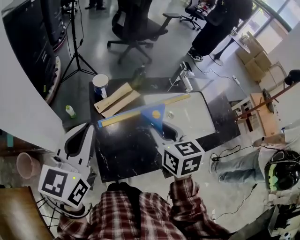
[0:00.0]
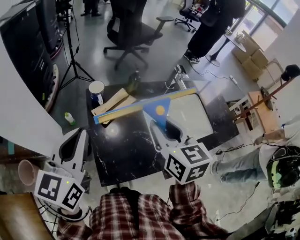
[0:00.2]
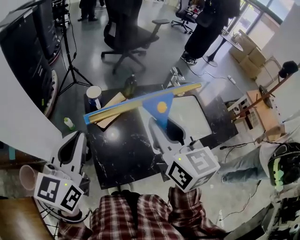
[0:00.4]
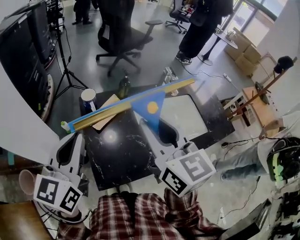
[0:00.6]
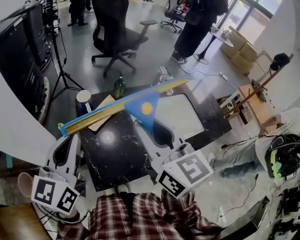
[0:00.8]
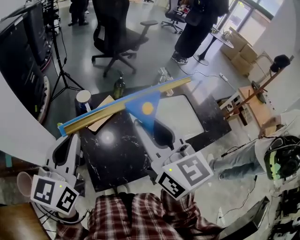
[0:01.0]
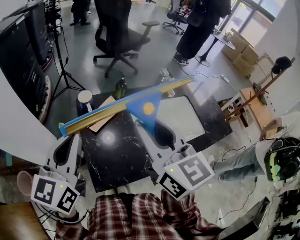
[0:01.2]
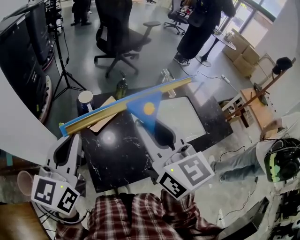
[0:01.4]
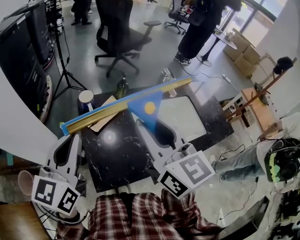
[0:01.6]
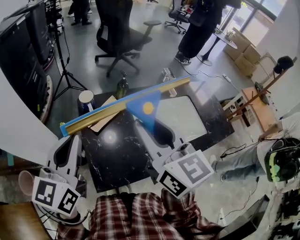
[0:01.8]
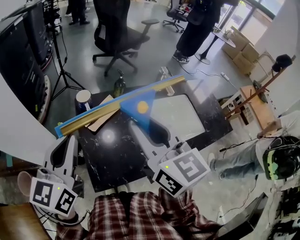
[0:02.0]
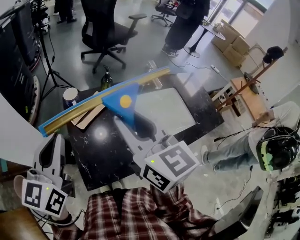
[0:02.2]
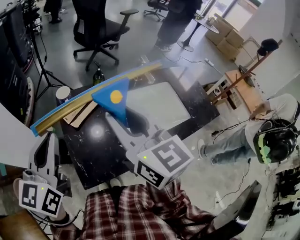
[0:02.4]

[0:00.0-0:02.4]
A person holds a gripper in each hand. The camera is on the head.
0:00.0 to 0:01.2: The right gripper is displaced upward by roughly 15 cm, and swivels some 30 degrees.
0:01.2 to 0:02.4: The two grippers keep their place.

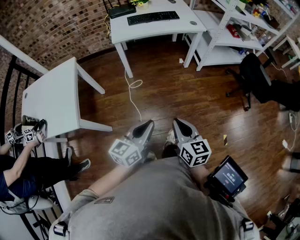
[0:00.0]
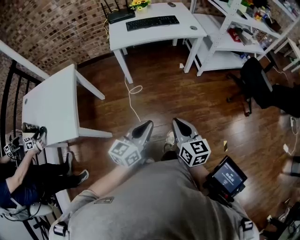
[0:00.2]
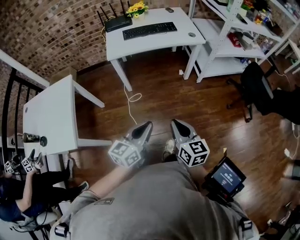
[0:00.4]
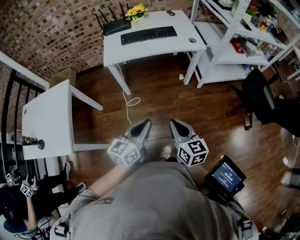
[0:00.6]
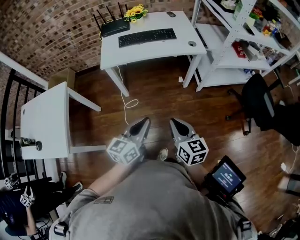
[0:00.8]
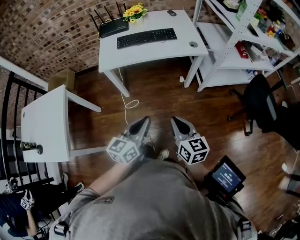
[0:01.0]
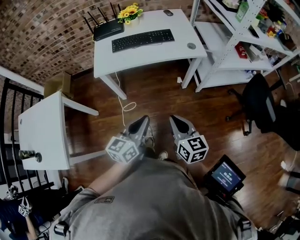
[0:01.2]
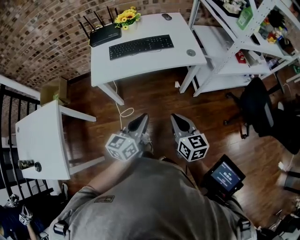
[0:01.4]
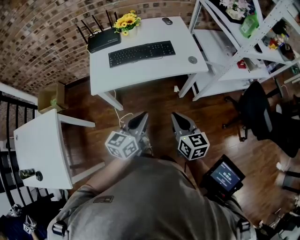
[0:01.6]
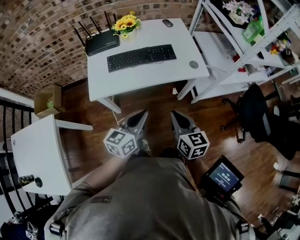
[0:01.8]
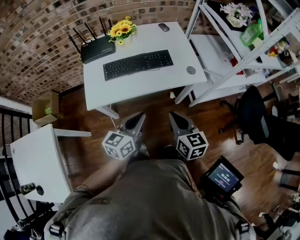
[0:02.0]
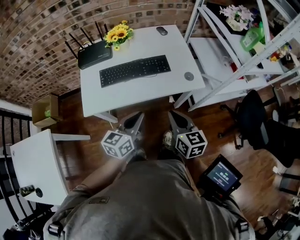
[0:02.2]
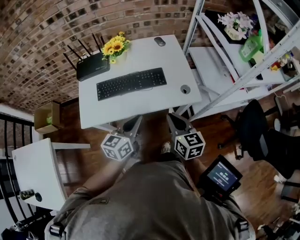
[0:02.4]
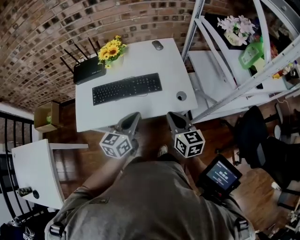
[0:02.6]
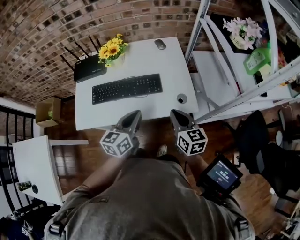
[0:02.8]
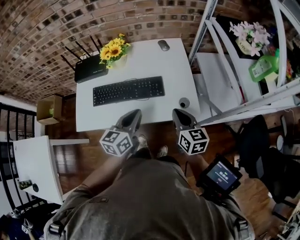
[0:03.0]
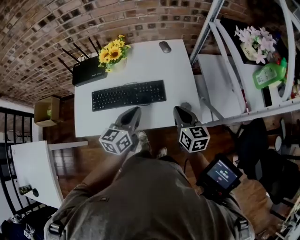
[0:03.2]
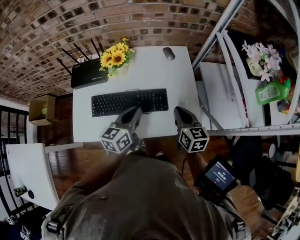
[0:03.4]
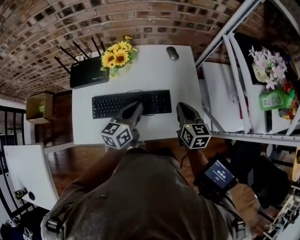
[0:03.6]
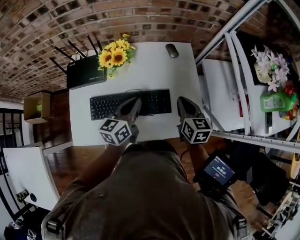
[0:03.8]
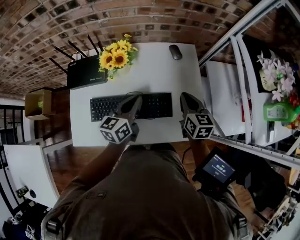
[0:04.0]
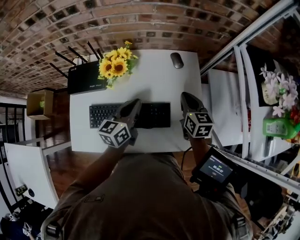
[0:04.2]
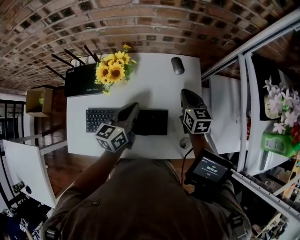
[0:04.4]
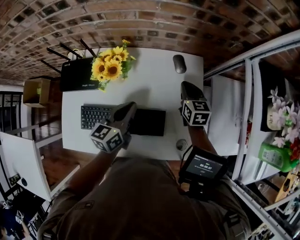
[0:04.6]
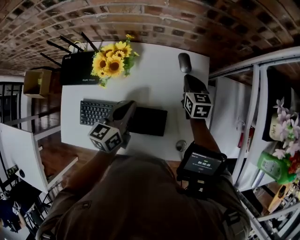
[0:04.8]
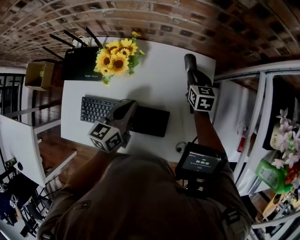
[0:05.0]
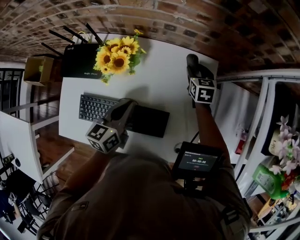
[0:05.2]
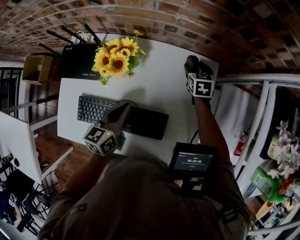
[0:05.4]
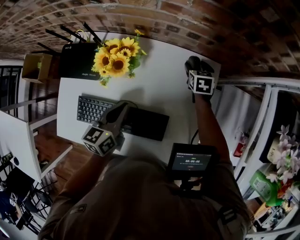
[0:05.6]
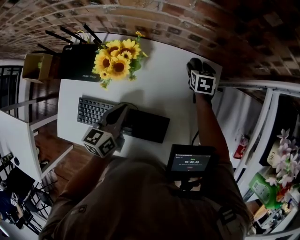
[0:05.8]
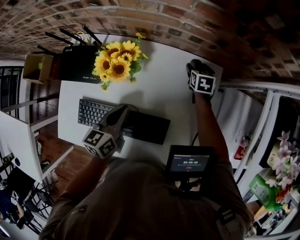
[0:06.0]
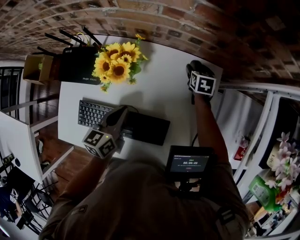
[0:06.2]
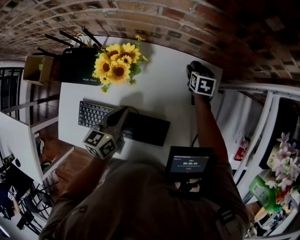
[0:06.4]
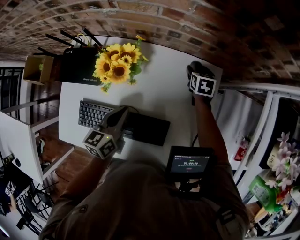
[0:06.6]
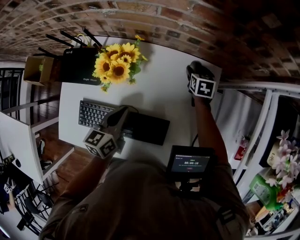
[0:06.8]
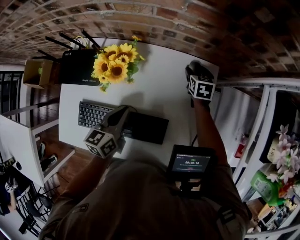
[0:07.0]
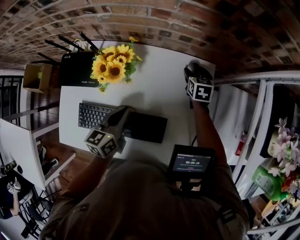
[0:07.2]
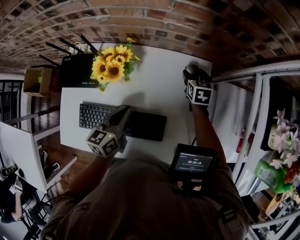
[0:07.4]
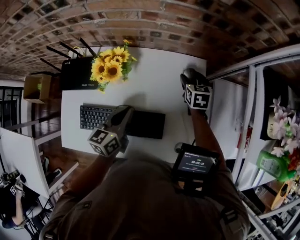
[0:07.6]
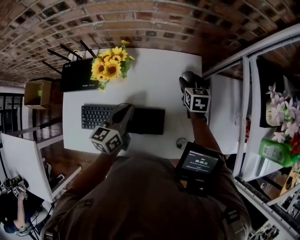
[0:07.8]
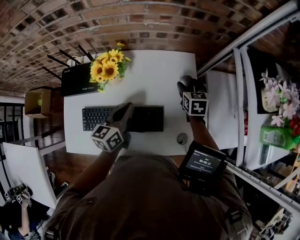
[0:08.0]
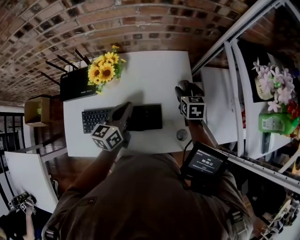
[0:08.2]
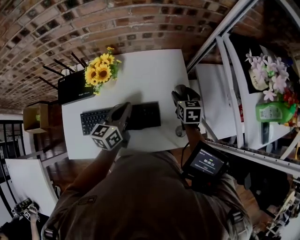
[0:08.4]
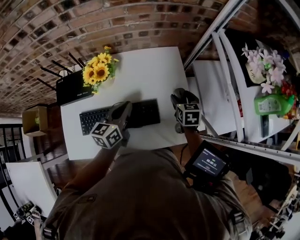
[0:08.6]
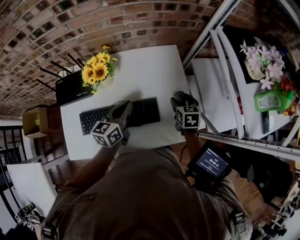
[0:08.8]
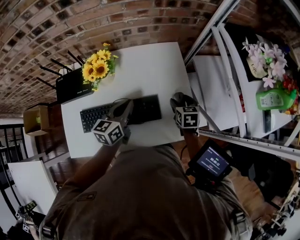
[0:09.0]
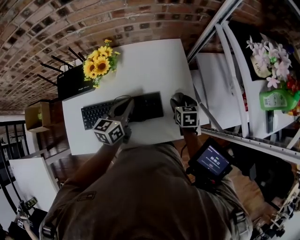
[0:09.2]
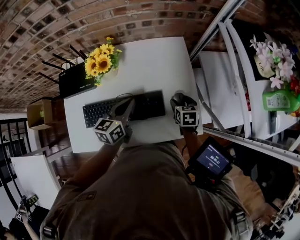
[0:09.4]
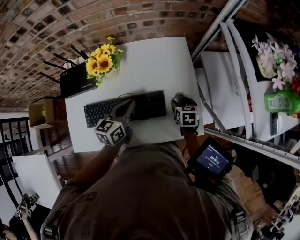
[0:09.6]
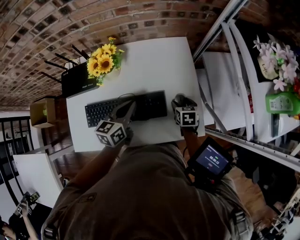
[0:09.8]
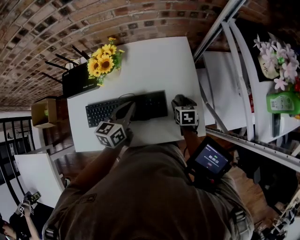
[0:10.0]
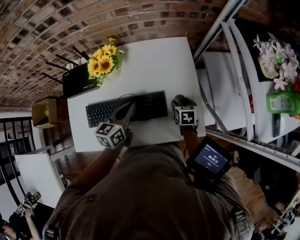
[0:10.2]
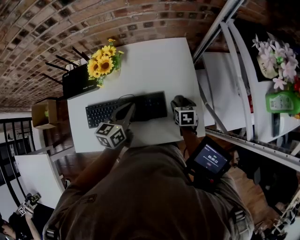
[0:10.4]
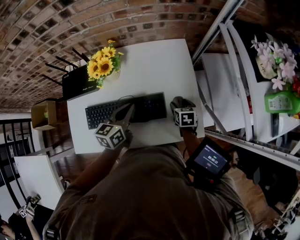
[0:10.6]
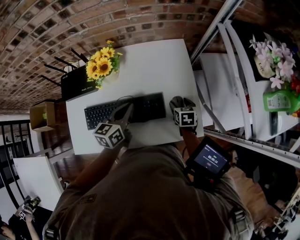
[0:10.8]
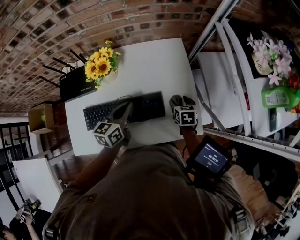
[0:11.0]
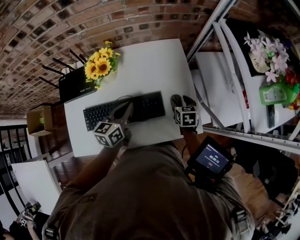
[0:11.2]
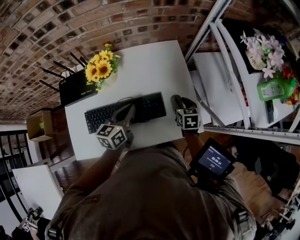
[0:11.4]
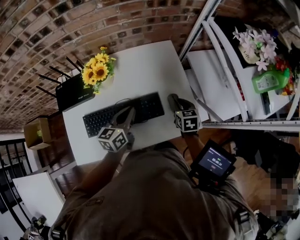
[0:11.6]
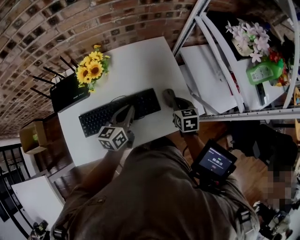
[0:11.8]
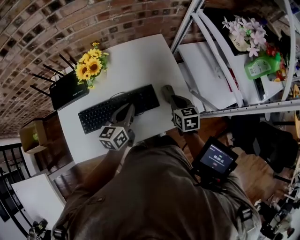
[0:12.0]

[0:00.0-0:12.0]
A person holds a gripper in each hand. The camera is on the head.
0:00.0 to 0:01.6: The pair of grippers is taken forward, about 40 cm.
0:01.6 to 0:03.0: Both grippers move forward, about 30 cm.
0:03.0 to 0:04.4: The two grippers go approximately 30 cm forward.
0:04.4 to 0:06.0: The right gripper travels forward and downward by approximately 25 cm, changes its angle by approximately 20 degrees, and opens. Meanwhile the left gripper is displaced downward by about 5 cm.
0:06.0 to 0:07.6: The right gripper moves upward and backward, some 10 cm.
0:07.6 to 0:09.0: The left gripper ends up some 5 cm from where it was; the right gripper goes about 20 cm backward.
0:09.0 to 0:10.4: The right gripper heads downward, covering approximately 10 cm.
0:10.4 to 0:12.0: The right gripper heads upward and backward, covering about 15 cm, and closes up.

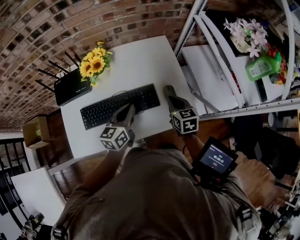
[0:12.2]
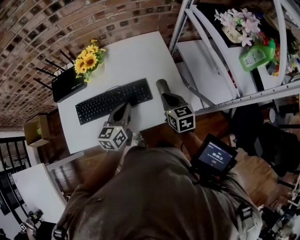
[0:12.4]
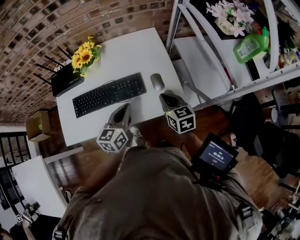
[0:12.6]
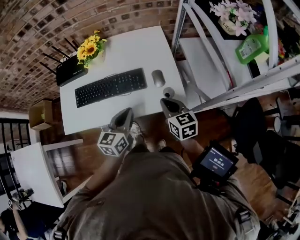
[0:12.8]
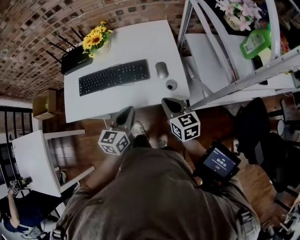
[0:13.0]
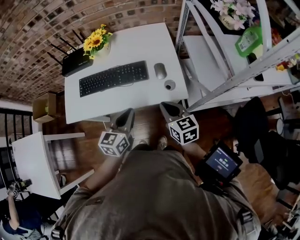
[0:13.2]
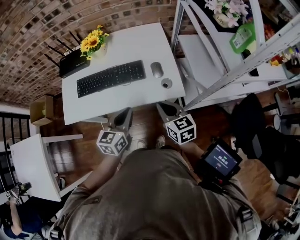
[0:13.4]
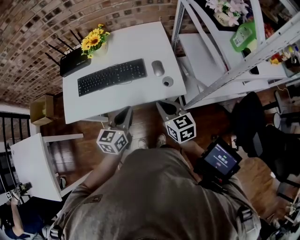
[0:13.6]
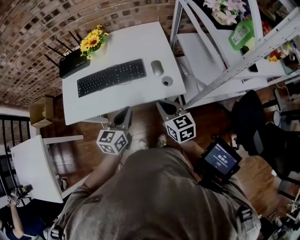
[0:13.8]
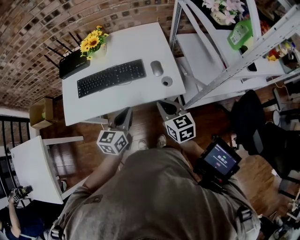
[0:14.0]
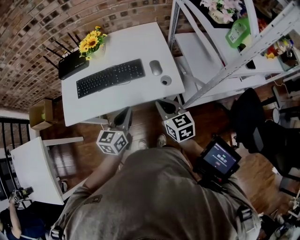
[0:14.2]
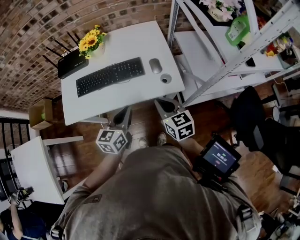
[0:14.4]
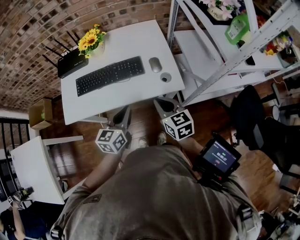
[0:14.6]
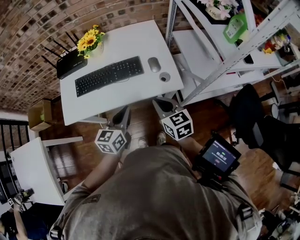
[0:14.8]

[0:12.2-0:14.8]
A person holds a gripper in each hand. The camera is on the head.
0:12.2 to 0:13.4: The two grippers go roughly 20 cm backward.
0:13.4 to 0:14.8: The grippers make only small movements.

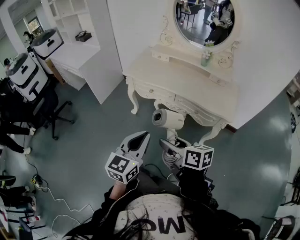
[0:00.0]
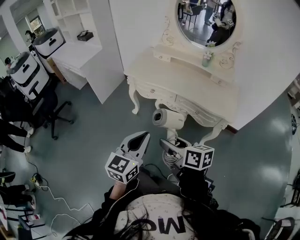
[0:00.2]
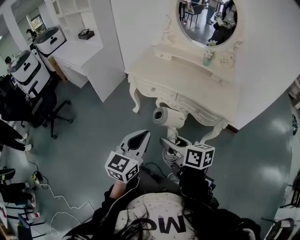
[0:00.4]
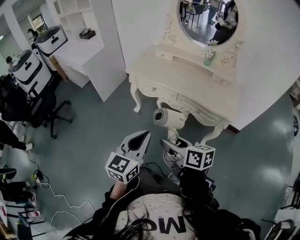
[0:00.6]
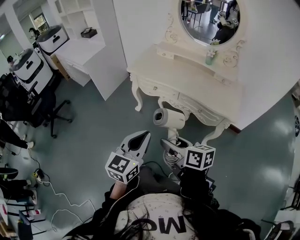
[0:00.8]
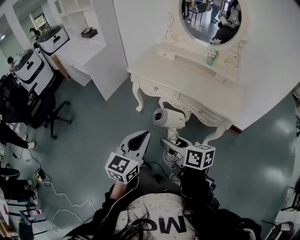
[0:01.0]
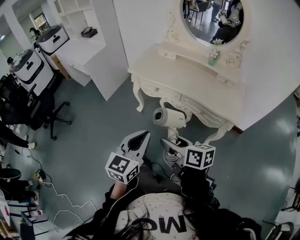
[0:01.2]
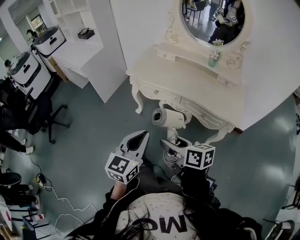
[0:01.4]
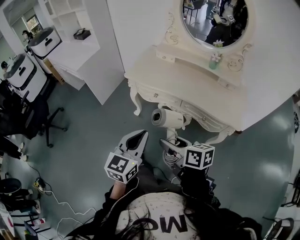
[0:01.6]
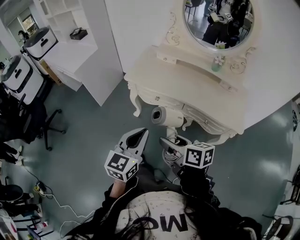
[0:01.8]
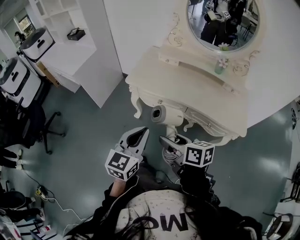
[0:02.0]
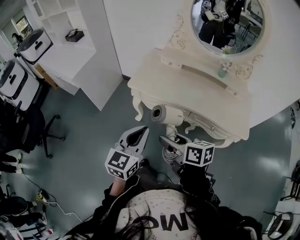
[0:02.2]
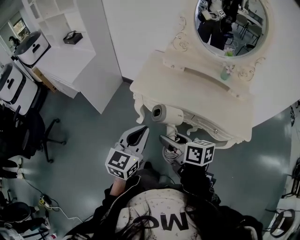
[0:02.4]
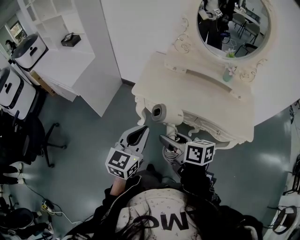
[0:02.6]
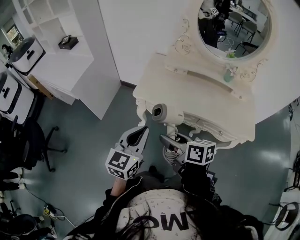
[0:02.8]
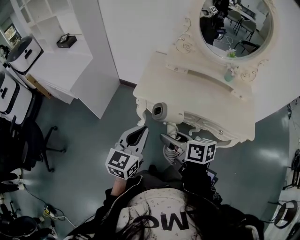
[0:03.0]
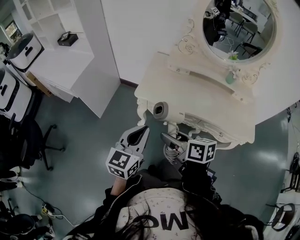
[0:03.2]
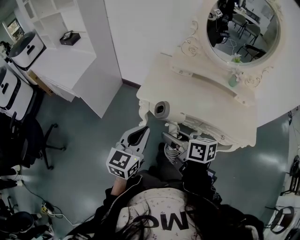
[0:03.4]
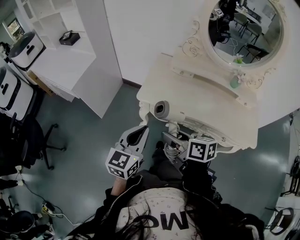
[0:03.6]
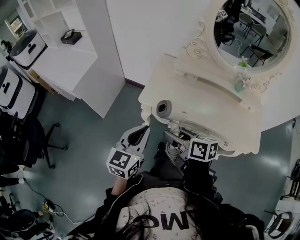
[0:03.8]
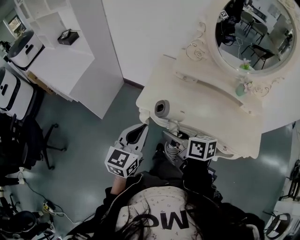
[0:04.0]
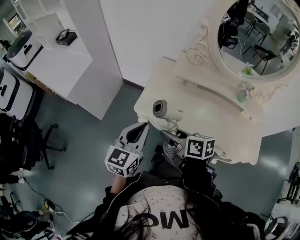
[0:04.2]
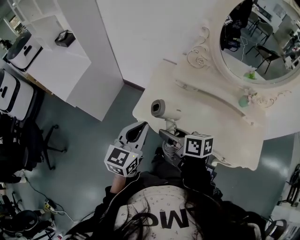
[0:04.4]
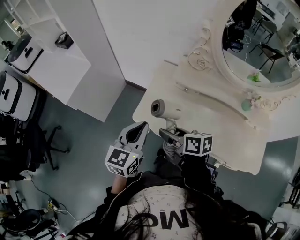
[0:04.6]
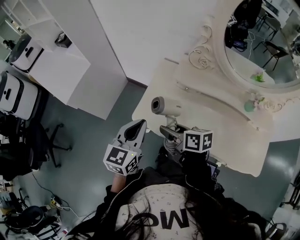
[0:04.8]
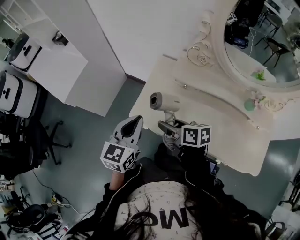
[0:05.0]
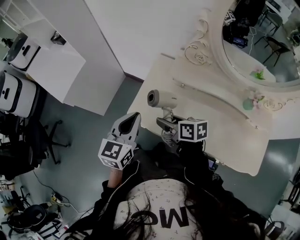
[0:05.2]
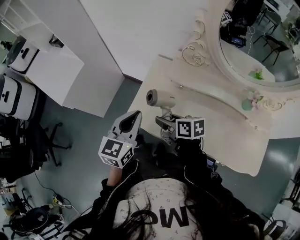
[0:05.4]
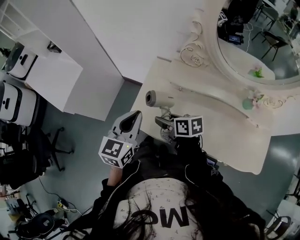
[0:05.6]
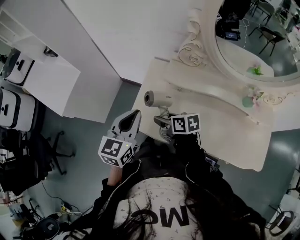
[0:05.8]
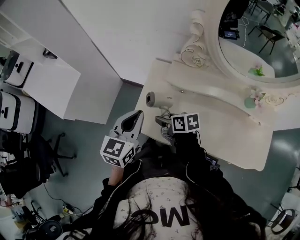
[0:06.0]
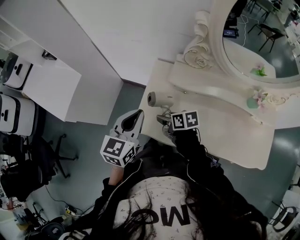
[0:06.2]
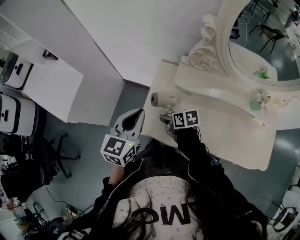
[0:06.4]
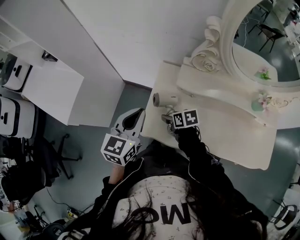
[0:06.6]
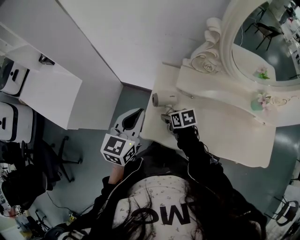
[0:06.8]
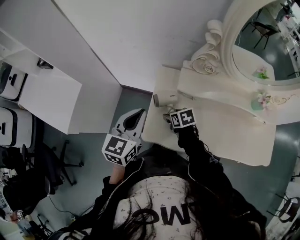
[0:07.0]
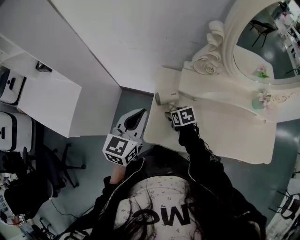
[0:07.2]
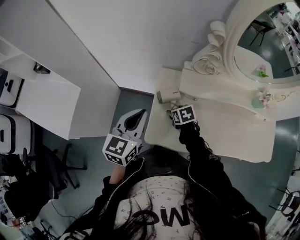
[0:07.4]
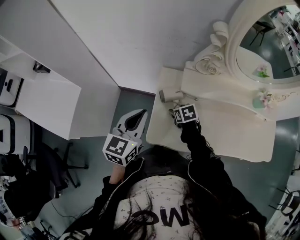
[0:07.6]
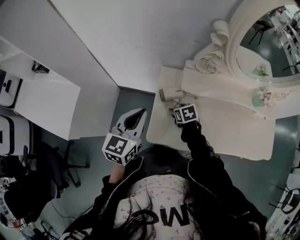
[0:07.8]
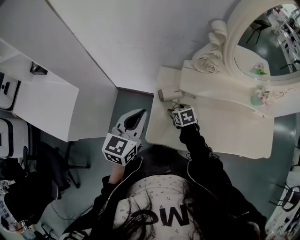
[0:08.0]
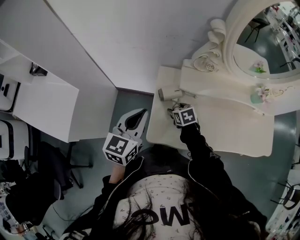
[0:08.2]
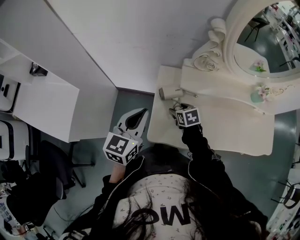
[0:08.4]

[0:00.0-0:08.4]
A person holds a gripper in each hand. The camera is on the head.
0:00.0 to 0:01.4: The grippers move only a little.
0:01.4 to 0:02.8: Both grippers travel together forward and to the left, about 30 cm.
0:02.8 to 0:04.2: Both grippers move forward, roughly 15 cm.
0:04.2 to 0:05.6: The left gripper moves forward and to the right, roughly 15 cm, while the right gripper heads forward, downward and to the right, covering roughly 20 cm.
0:05.6 to 0:07.0: The right gripper shifts roughly 15 cm downward and forward, and swivels roughly 30 degrees. Meanwhile the left gripper moves forward, about 10 cm.
0:07.0 to 0:08.4: The grippers make only small movements.
